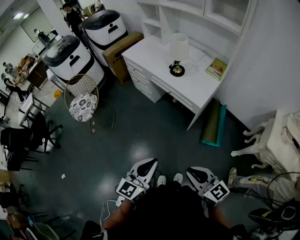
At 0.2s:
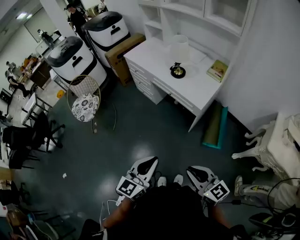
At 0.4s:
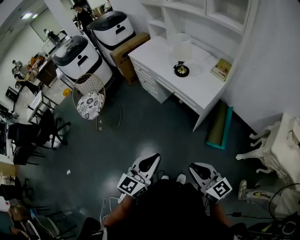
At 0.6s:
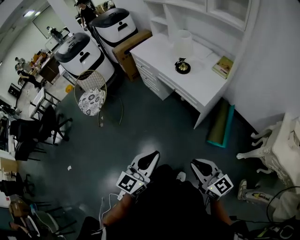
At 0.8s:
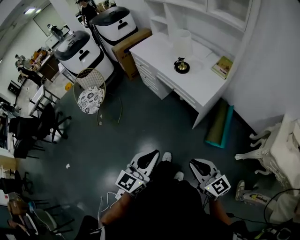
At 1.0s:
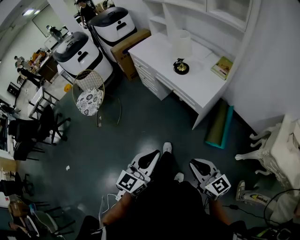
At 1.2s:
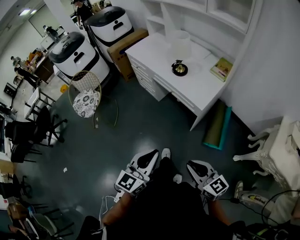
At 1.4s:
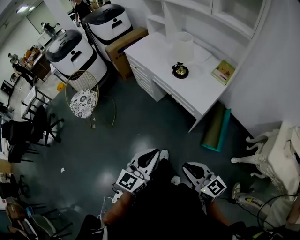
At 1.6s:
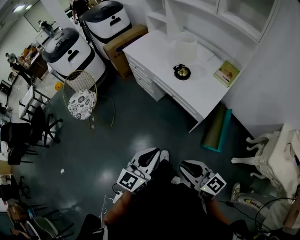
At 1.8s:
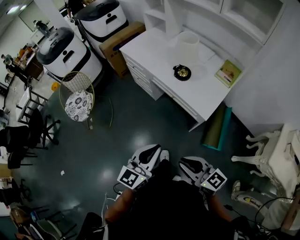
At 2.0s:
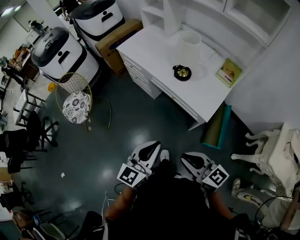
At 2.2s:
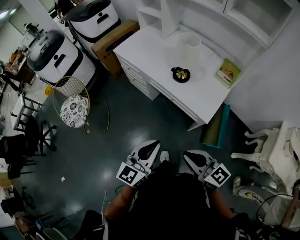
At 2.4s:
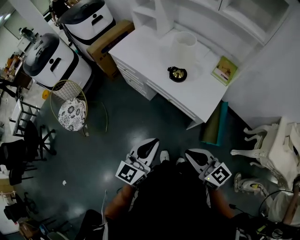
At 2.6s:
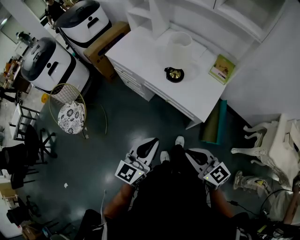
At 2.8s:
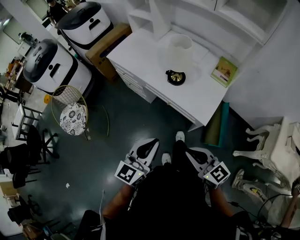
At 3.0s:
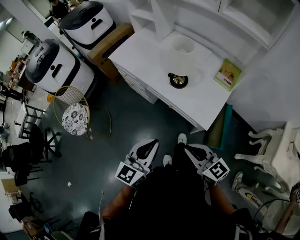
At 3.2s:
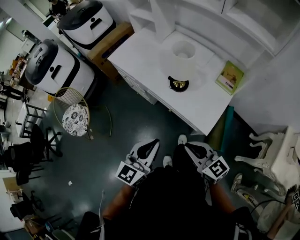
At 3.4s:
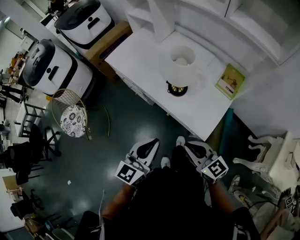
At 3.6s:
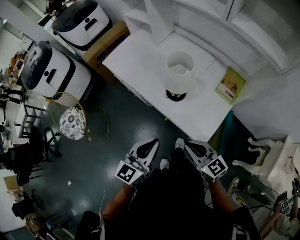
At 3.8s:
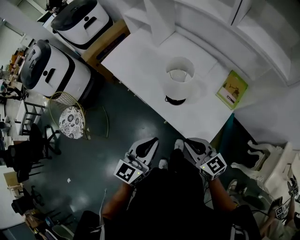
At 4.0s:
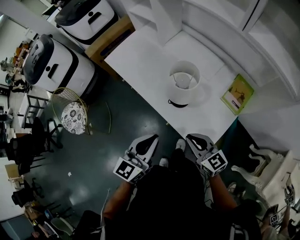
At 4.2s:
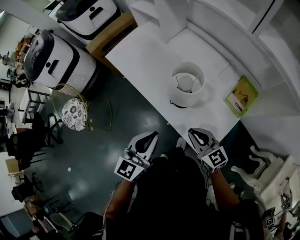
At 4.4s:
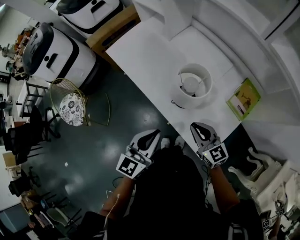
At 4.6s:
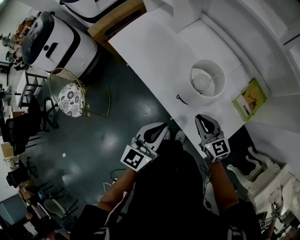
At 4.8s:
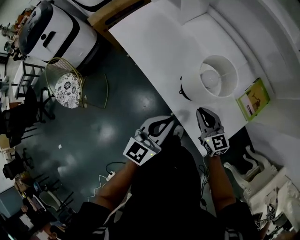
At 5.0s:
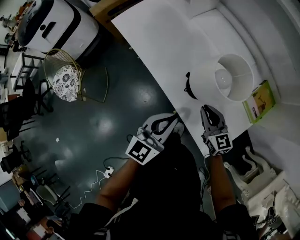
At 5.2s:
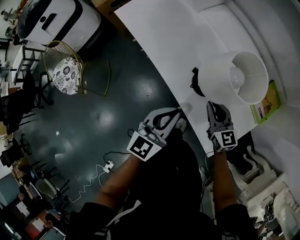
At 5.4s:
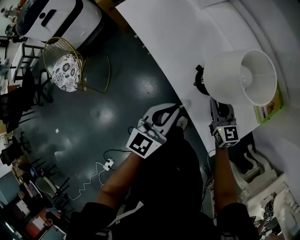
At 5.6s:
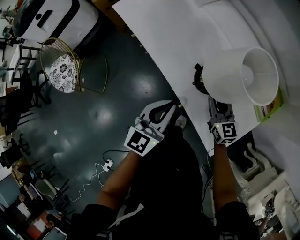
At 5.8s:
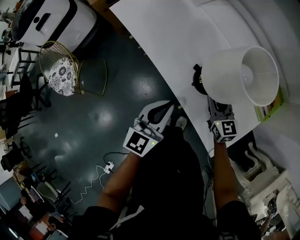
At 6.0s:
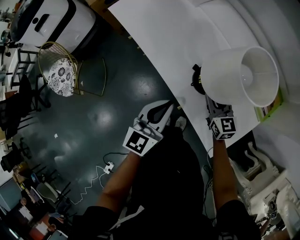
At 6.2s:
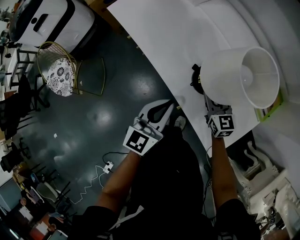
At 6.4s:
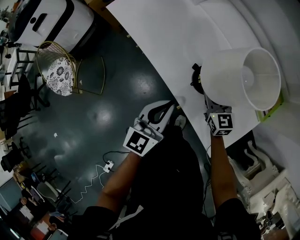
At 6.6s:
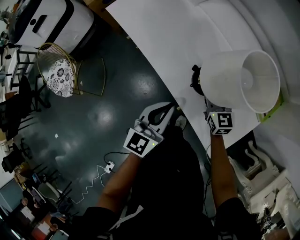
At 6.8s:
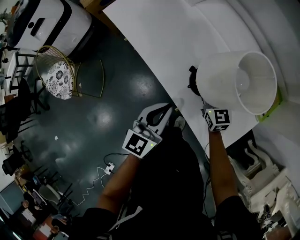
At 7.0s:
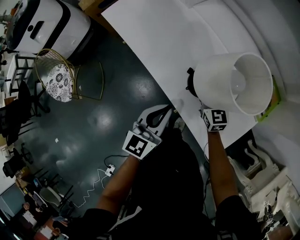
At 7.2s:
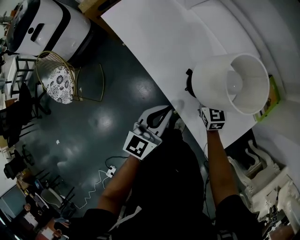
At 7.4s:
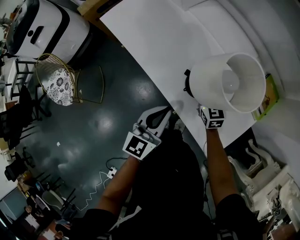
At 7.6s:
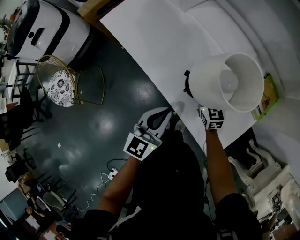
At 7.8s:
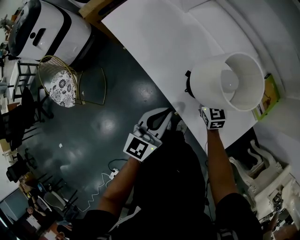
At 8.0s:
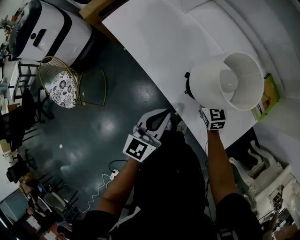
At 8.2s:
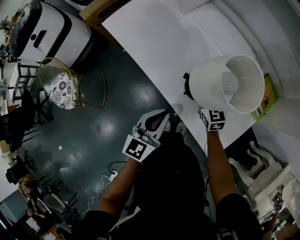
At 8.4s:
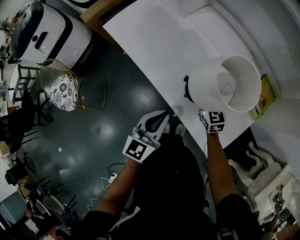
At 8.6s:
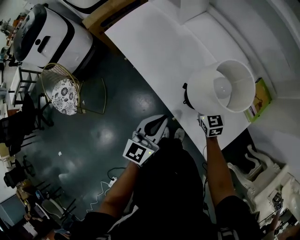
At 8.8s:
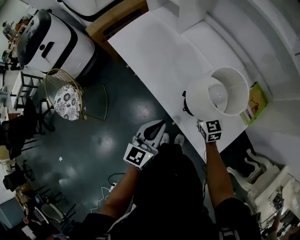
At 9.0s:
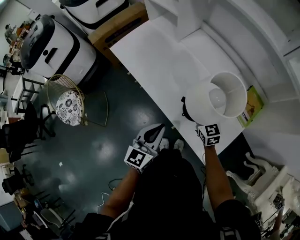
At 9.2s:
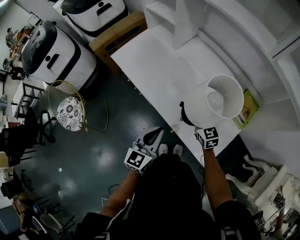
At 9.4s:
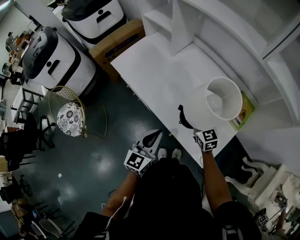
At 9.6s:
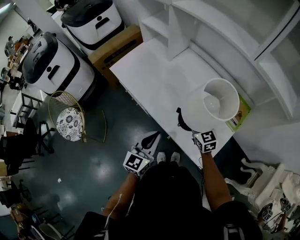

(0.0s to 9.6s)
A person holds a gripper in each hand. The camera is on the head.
0.0s - 1.6s: Both grippers move forward, some 15 cm.
1.6s - 3.2s: Both grippers move forward, some 25 cm.
3.2s - 4.8s: The grippers both shift forward and downward by roughly 25 cm.
4.8s - 6.4s: The left gripper shifts roughly 10 cm downward. The right gripper is displaced downward and forward by roughly 10 cm.
6.4s - 8.0s: The grippers stay close to where they were, moving slightly.
8.0s - 9.6s: The right gripper shifts approximately 15 cm upward, while the left gripper goes approximately 10 cm upward.

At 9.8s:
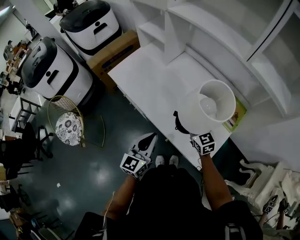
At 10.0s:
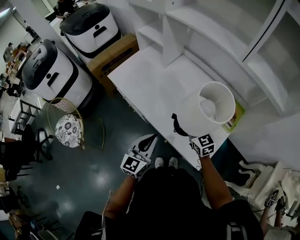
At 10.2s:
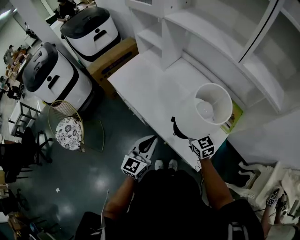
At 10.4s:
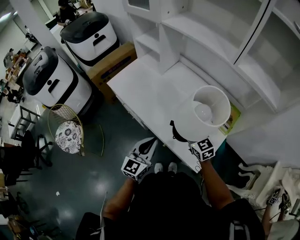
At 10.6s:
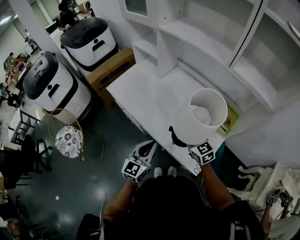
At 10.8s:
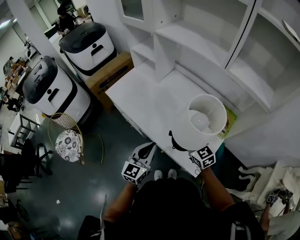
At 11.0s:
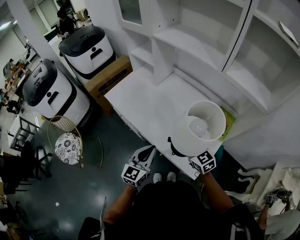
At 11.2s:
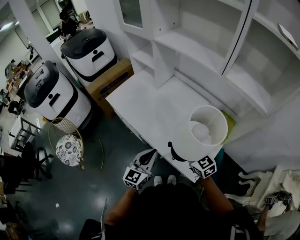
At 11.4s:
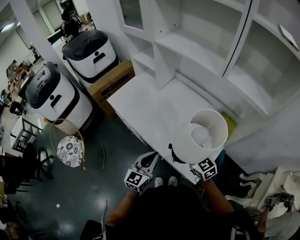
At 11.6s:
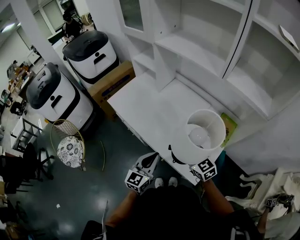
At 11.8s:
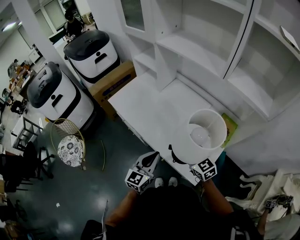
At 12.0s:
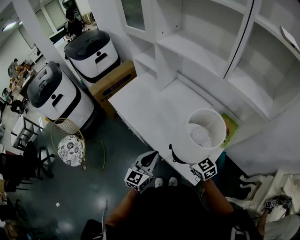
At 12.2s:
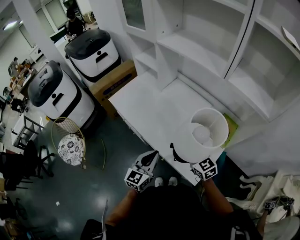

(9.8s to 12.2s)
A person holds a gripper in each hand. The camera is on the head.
9.8s - 11.0s: The right gripper shifts about 5 cm backward.
11.0s - 12.2s: The grippers make only small movements.

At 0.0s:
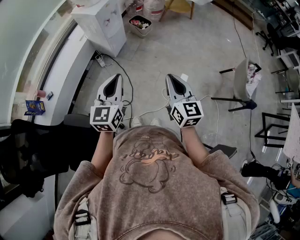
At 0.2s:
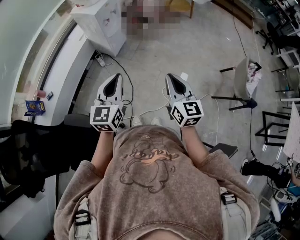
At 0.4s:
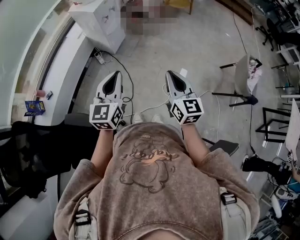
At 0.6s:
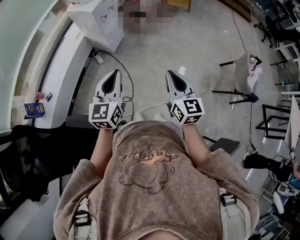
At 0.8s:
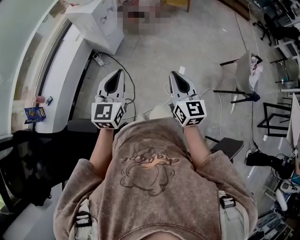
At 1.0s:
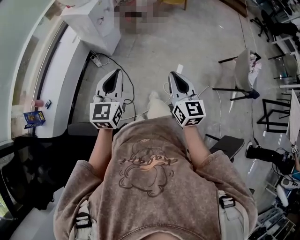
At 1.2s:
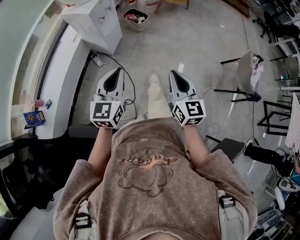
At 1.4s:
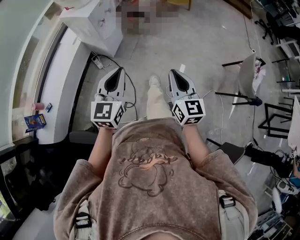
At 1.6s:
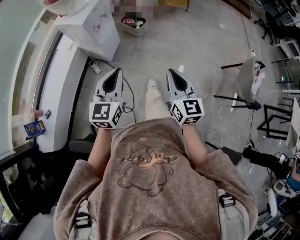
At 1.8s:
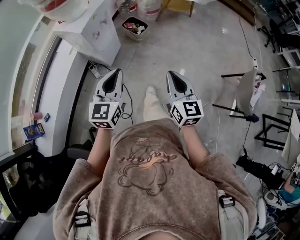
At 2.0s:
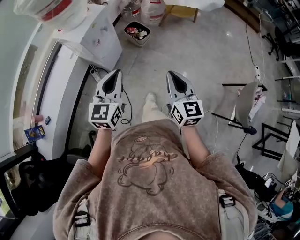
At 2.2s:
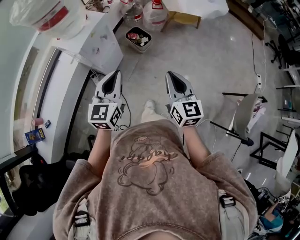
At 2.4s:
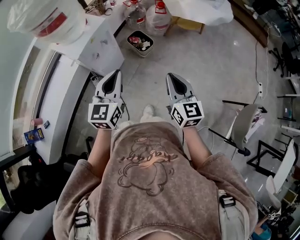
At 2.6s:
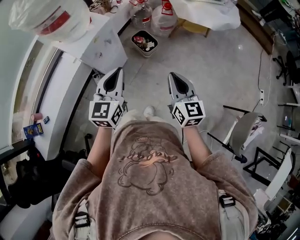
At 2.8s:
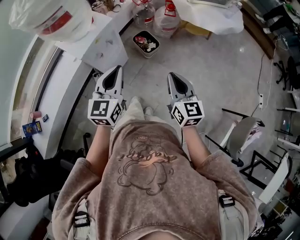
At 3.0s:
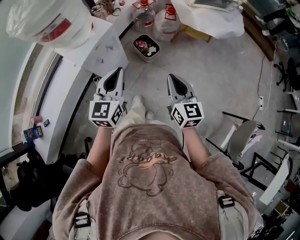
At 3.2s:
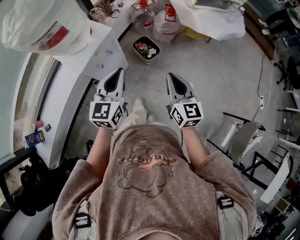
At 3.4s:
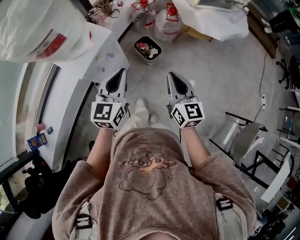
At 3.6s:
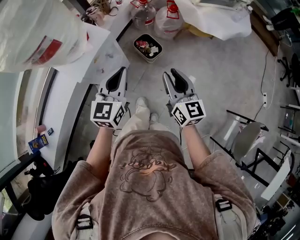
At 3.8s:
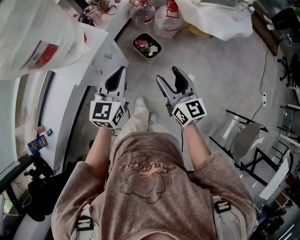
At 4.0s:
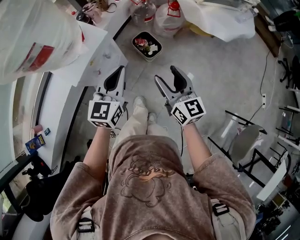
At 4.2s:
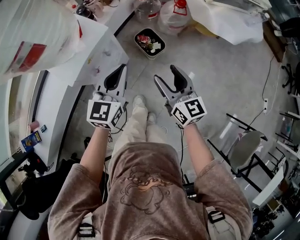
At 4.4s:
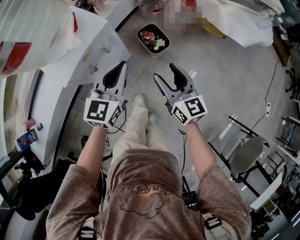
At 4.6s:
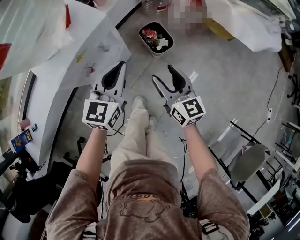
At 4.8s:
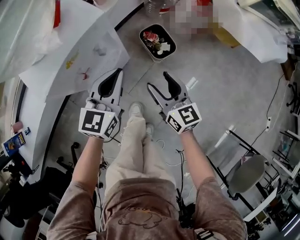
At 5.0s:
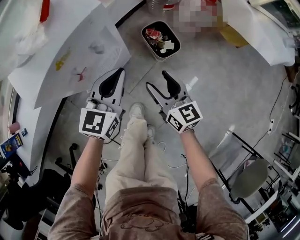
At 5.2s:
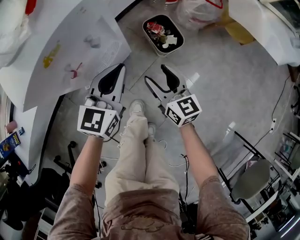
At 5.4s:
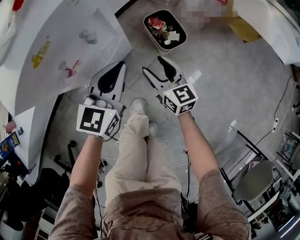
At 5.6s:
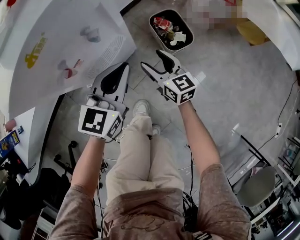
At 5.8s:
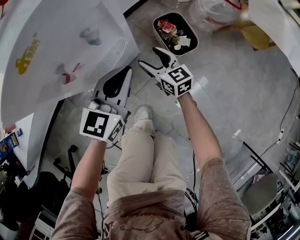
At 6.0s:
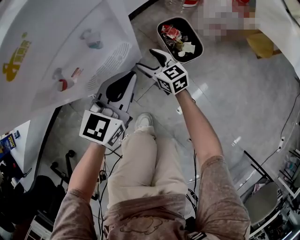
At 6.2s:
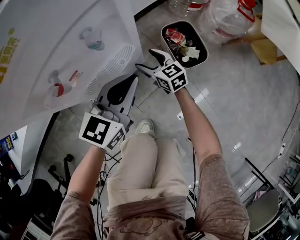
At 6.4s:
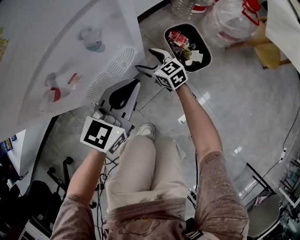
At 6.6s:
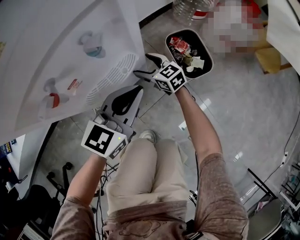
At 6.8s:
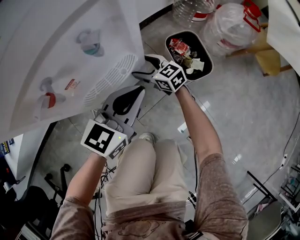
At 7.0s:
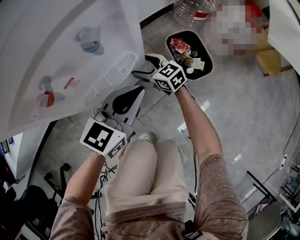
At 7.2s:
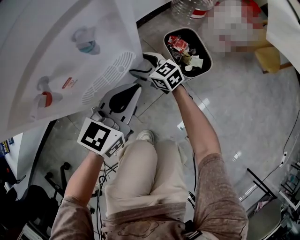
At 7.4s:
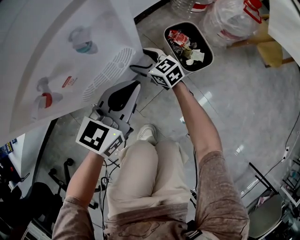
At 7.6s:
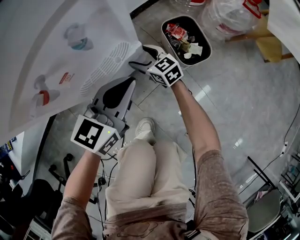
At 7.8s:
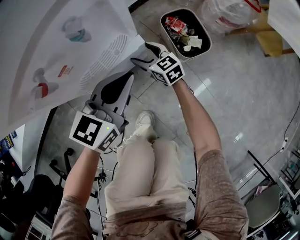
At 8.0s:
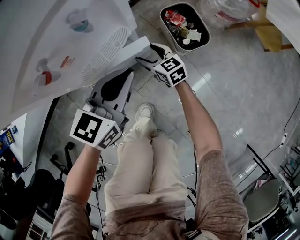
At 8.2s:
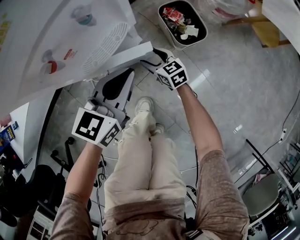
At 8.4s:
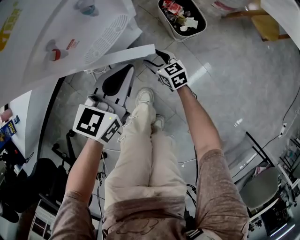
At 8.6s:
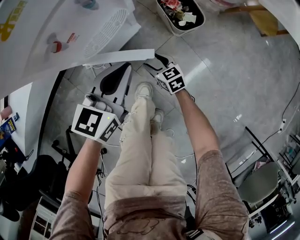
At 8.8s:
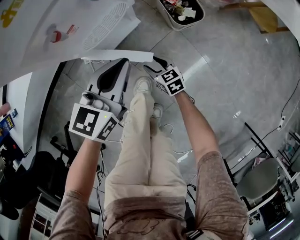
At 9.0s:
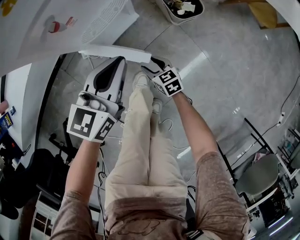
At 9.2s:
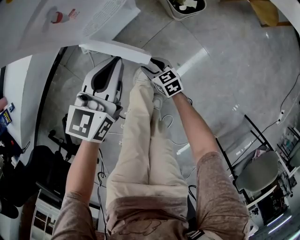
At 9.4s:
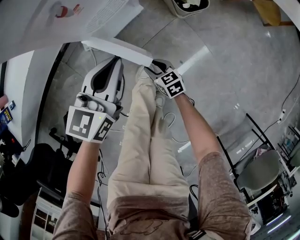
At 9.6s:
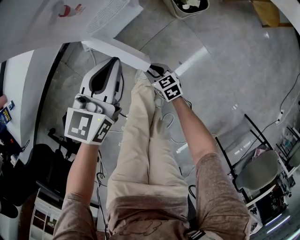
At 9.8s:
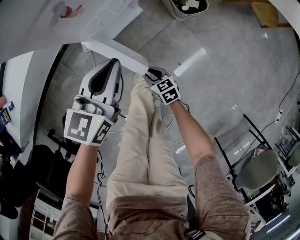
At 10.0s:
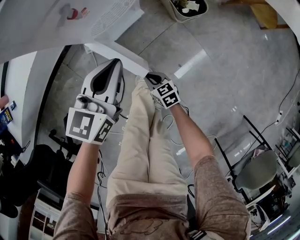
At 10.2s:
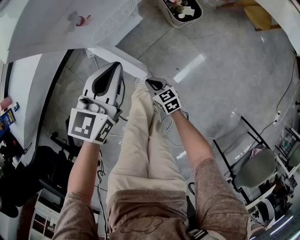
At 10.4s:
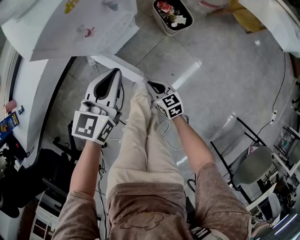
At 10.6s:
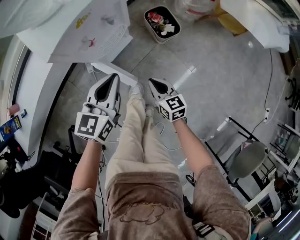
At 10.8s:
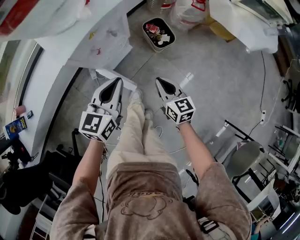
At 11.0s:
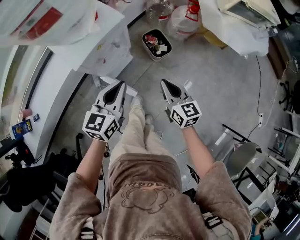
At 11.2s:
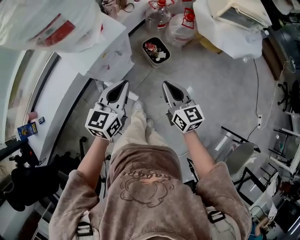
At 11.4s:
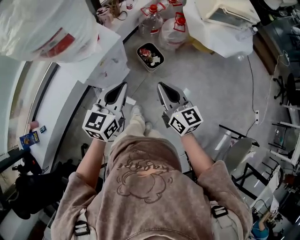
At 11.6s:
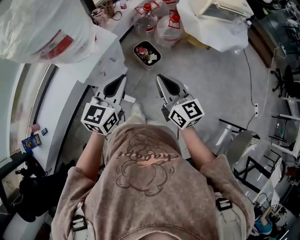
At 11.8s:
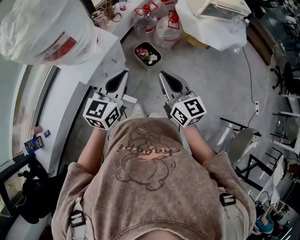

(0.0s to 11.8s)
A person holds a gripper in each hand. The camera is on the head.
0.0s - 1.4s: The grippers both shift forward by some 10 cm.
1.4s - 3.0s: Both grippers travel together forward, approximately 40 cm.
3.0s - 4.4s: The left gripper moves forward and downward, some 20 cm. The right gripper travels forward, downward and to the left by roughly 25 cm, and opens.
4.4s - 6.0s: The grippers both shift downward by some 35 cm. The right gripper rotates about 30 degrees.
6.0s - 7.4s: The left gripper goes about 5 cm downward, while the right gripper heads downward and forward, covering roughly 10 cm.
7.4s - 8.8s: The left gripper goes roughly 15 cm backward and upward. The right gripper moves backward, roughly 25 cm, swivels approximately 20 degrees, and closes its fingers.
8.8s - 10.4s: The right gripper shifts roughly 15 cm upward and backward, and closes up; the left gripper heads upward and to the left, covering roughly 10 cm.
10.4s - 11.8s: The right gripper heads upward, covering about 60 cm, and swivels roughly 40 degrees, while the left gripper shifts about 30 cm upward.
